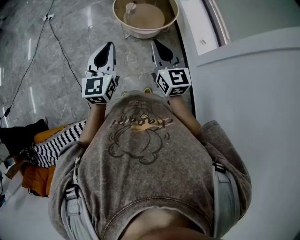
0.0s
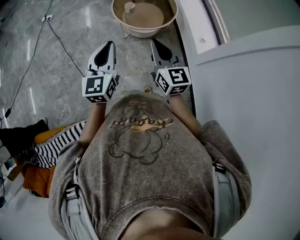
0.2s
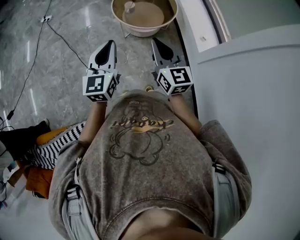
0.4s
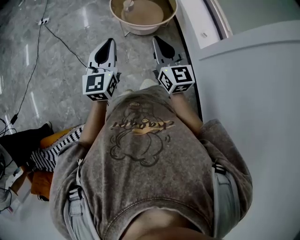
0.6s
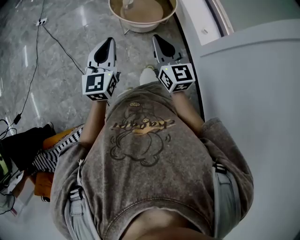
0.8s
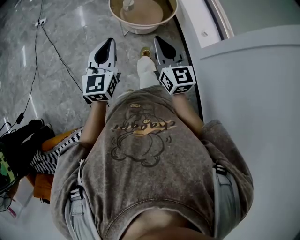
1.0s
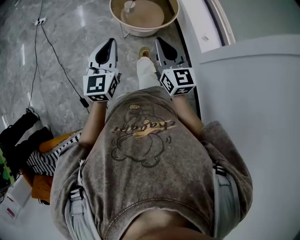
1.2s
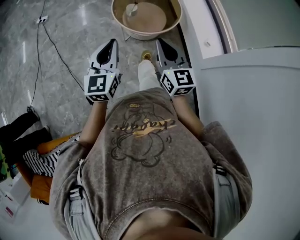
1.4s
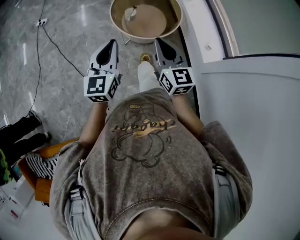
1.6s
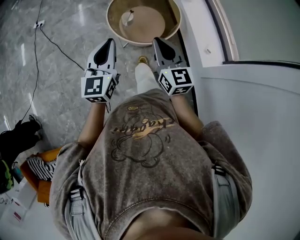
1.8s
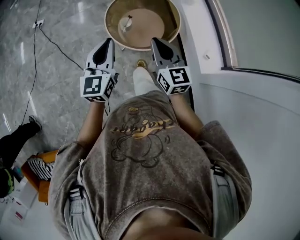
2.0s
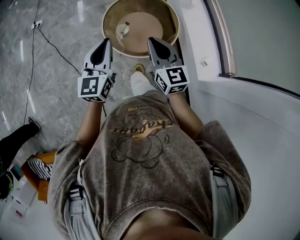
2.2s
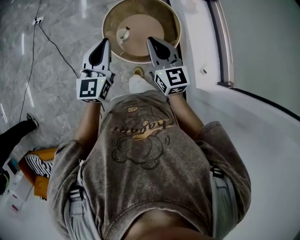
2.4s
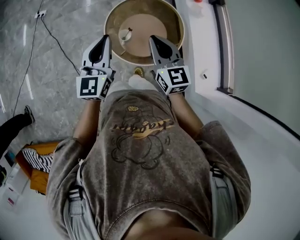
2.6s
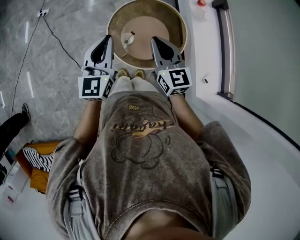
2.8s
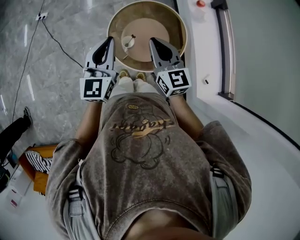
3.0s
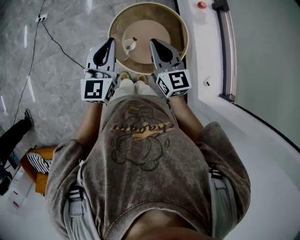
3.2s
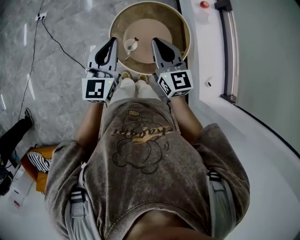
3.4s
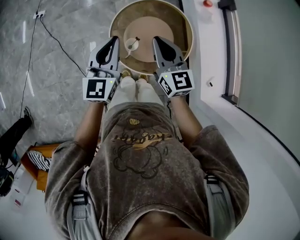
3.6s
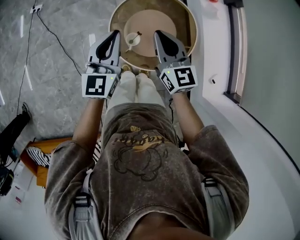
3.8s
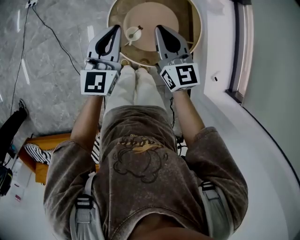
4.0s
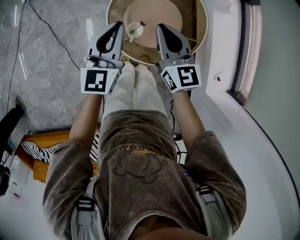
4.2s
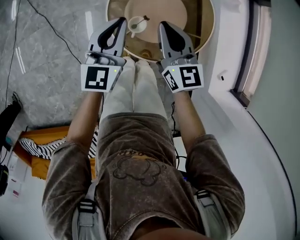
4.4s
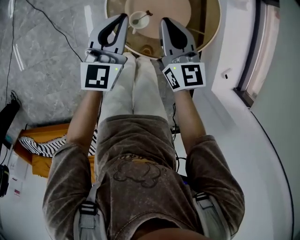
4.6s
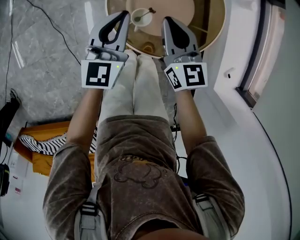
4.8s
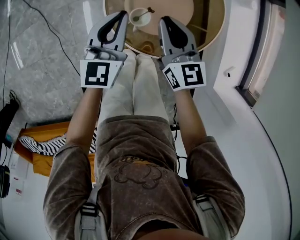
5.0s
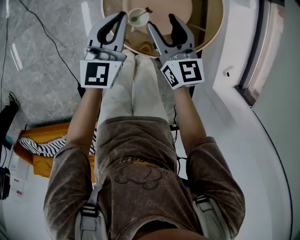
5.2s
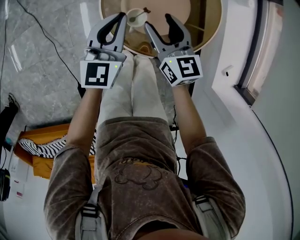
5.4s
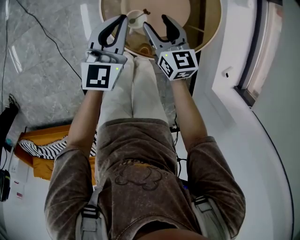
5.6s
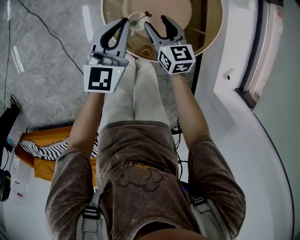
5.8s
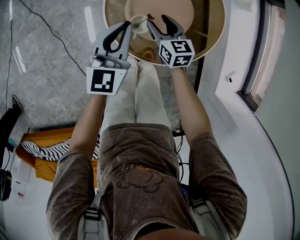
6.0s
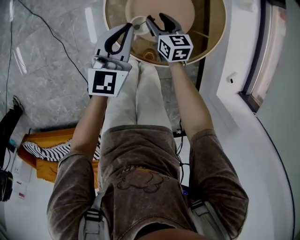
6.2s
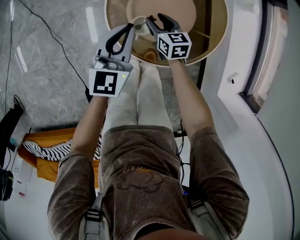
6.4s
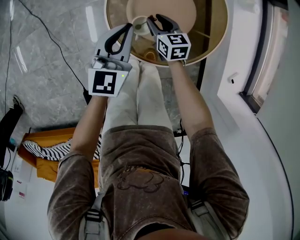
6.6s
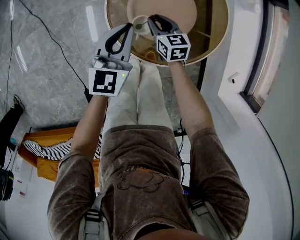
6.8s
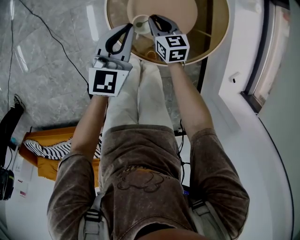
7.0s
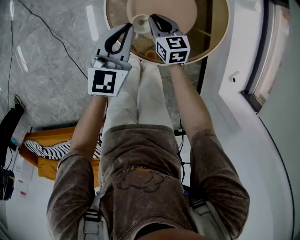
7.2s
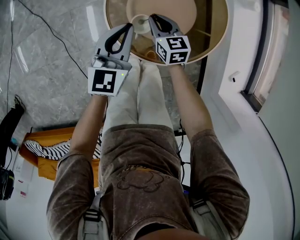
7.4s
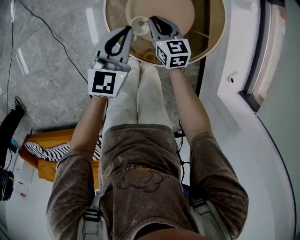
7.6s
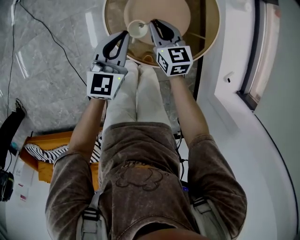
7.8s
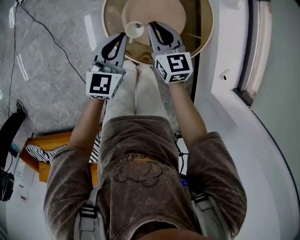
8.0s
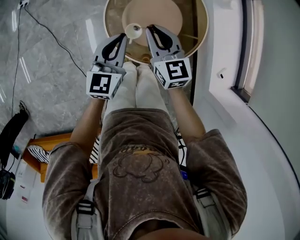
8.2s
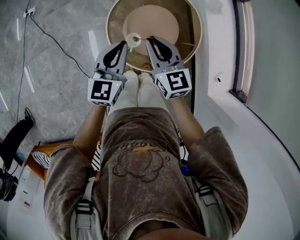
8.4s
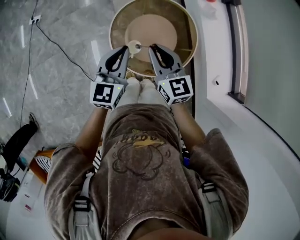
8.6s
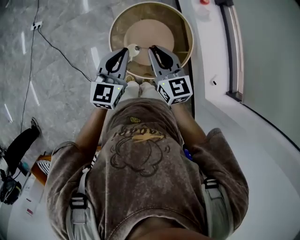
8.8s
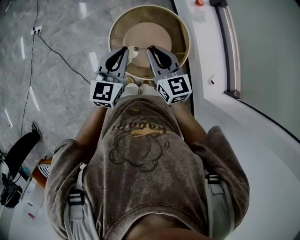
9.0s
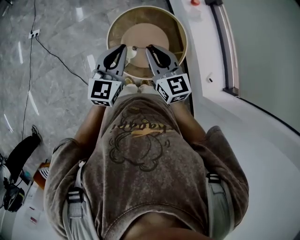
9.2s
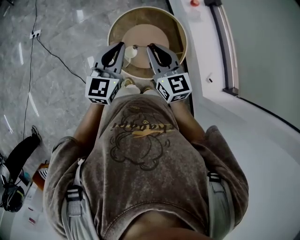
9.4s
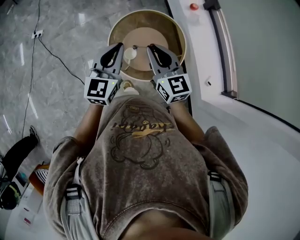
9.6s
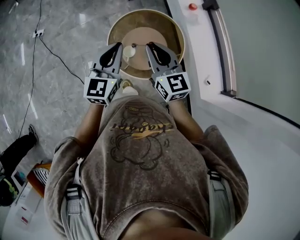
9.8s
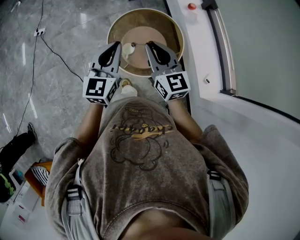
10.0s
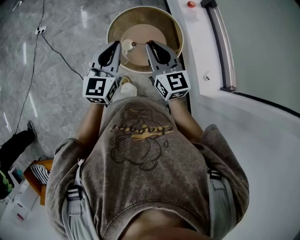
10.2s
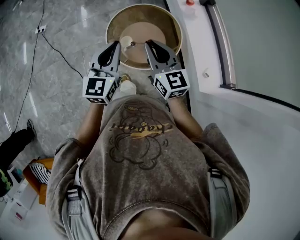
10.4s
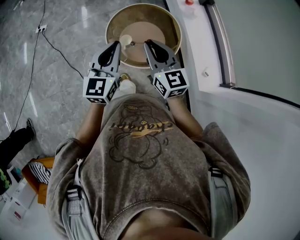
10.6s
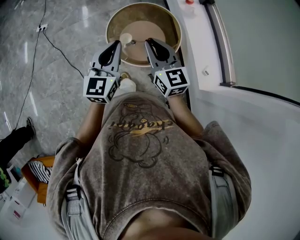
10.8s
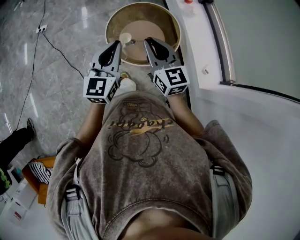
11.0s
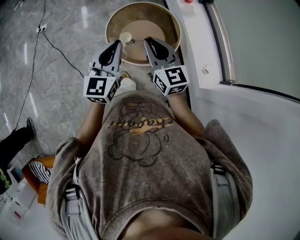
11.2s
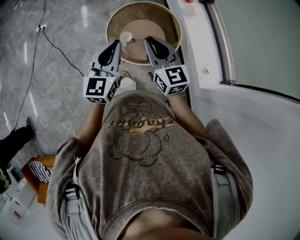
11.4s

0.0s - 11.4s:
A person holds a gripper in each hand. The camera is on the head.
0.0s - 1.4s: The two grippers go approximately 10 cm forward.
1.4s - 2.8s: Both grippers travel together forward, some 40 cm.
2.8s - 4.2s: Both grippers move downward and forward, about 20 cm.
4.2s - 5.6s: The grippers both shift downward by roughly 15 cm. The right gripper opens.
5.6s - 7.2s: The right gripper travels downward by some 10 cm, and closes up.
7.2s - 8.6s: The right gripper is displaced upward by about 35 cm, and rotates approximately 20 degrees; the left gripper is displaced upward by some 20 cm.
8.6s - 10.0s: The grippers both shift upward and backward by approximately 15 cm.
10.0s - 11.4s: The grippers both shift backward by some 10 cm.

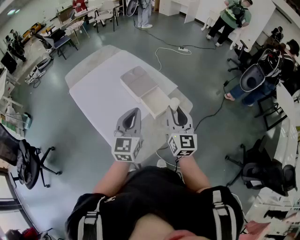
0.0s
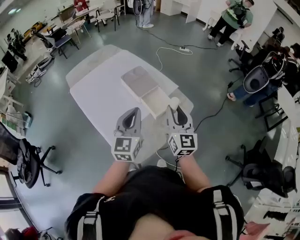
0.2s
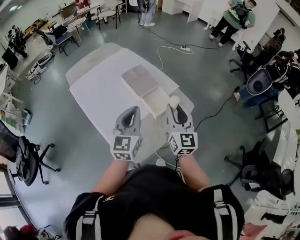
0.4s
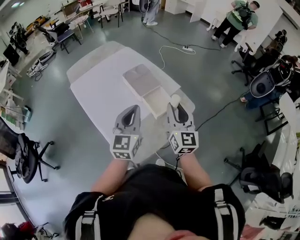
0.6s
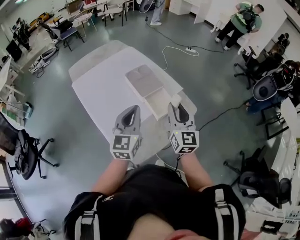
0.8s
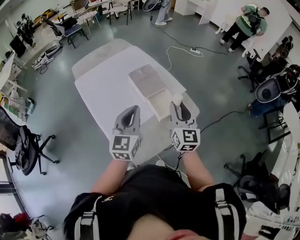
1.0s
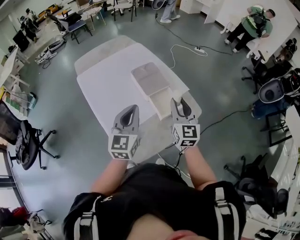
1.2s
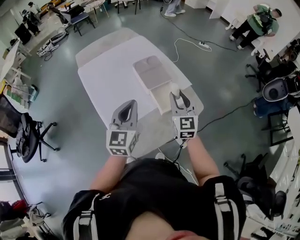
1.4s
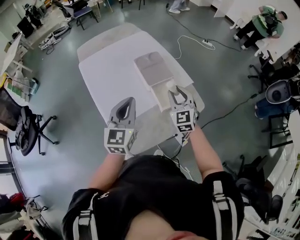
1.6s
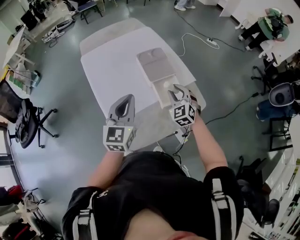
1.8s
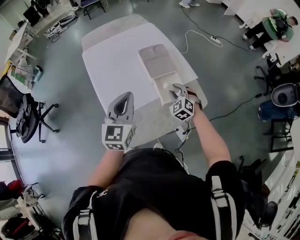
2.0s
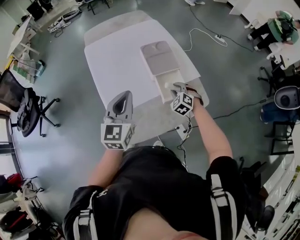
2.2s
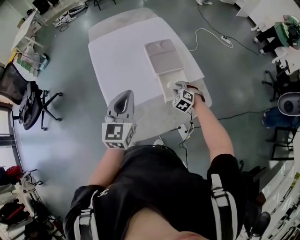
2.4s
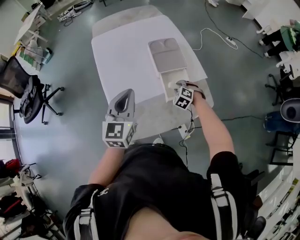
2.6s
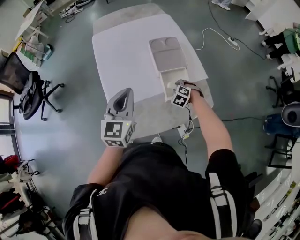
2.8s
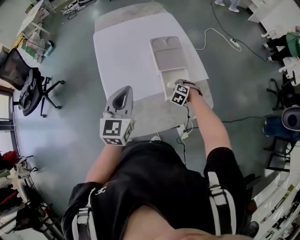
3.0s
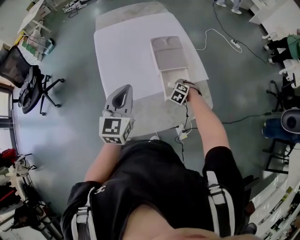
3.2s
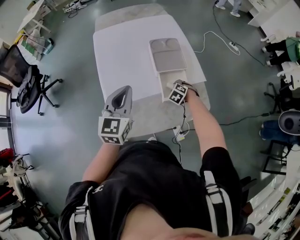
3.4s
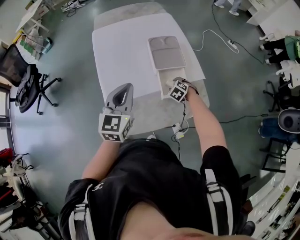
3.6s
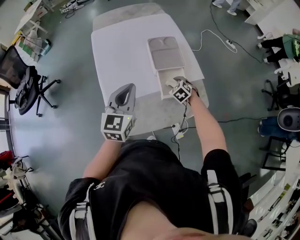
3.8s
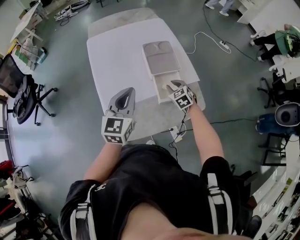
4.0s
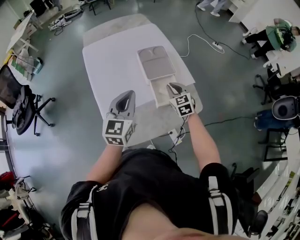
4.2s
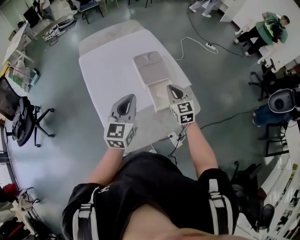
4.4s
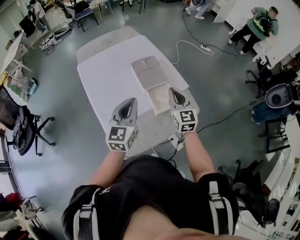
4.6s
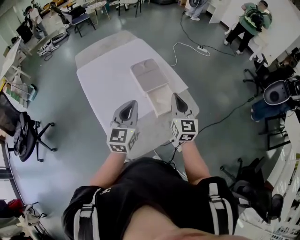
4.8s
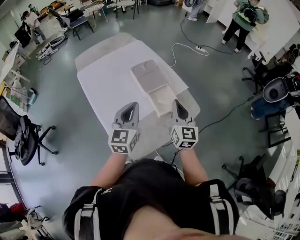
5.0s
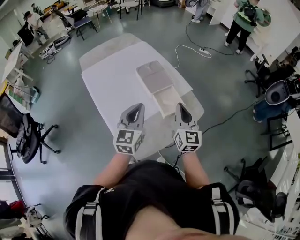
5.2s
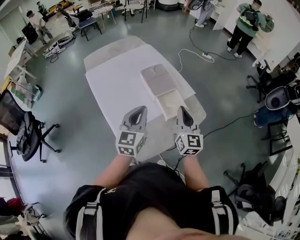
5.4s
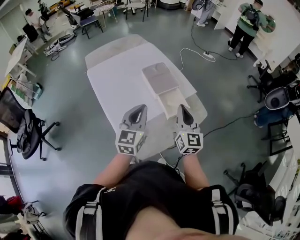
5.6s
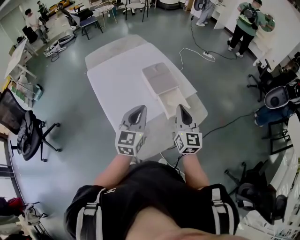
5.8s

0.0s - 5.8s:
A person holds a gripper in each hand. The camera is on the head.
0.0s - 1.4s: The right gripper travels forward by roughly 10 cm, and rotates about 20 degrees. The left gripper changes place by about 5 cm.
1.4s - 2.8s: The right gripper moves downward, about 30 cm, and tilts its fingers some 60 degrees downward.
2.8s - 4.4s: The right gripper shifts approximately 20 cm upward, angles its fingers upward, by approximately 40 degrees, and closes its fingers.
4.4s - 5.8s: The right gripper shifts some 15 cm backward and upward, and changes its angle by about 30 degrees.

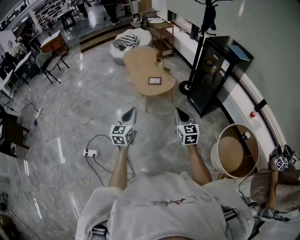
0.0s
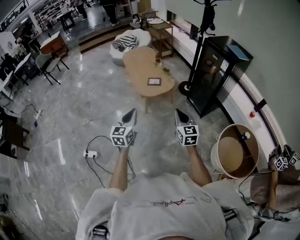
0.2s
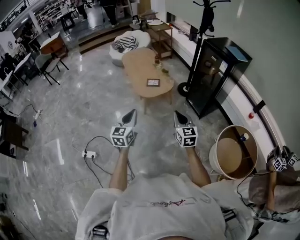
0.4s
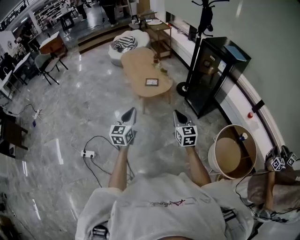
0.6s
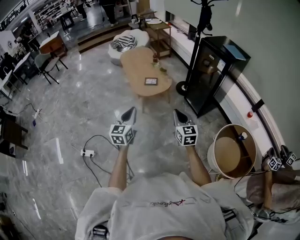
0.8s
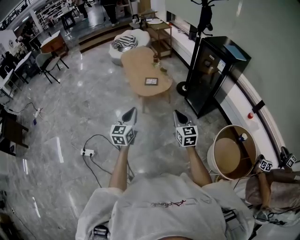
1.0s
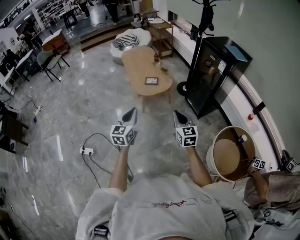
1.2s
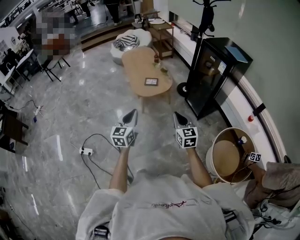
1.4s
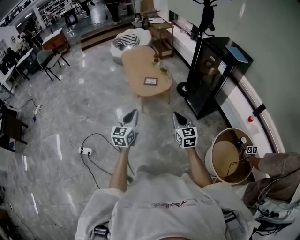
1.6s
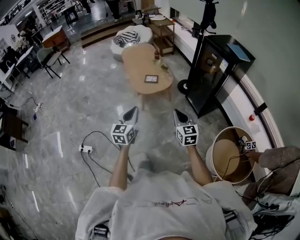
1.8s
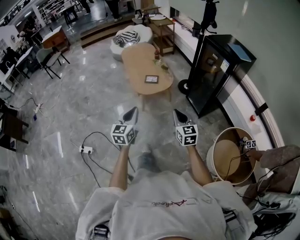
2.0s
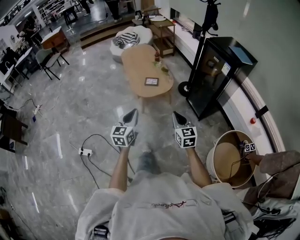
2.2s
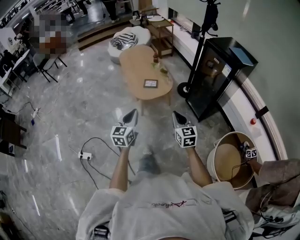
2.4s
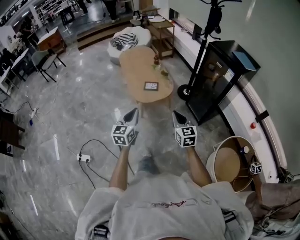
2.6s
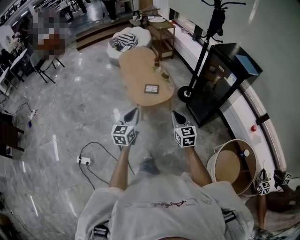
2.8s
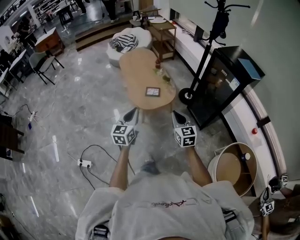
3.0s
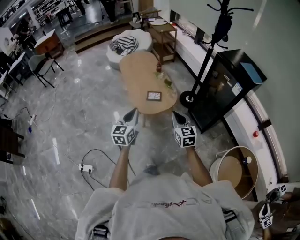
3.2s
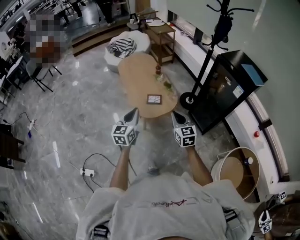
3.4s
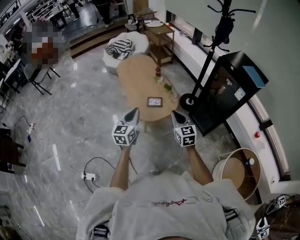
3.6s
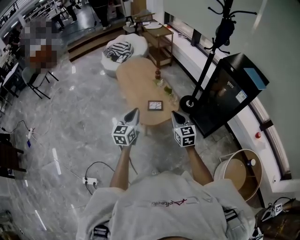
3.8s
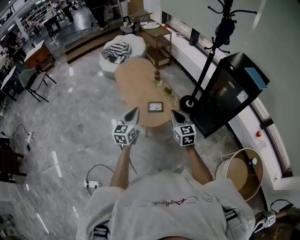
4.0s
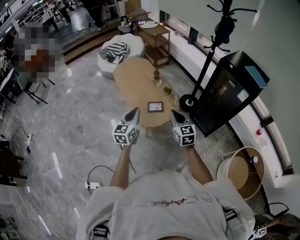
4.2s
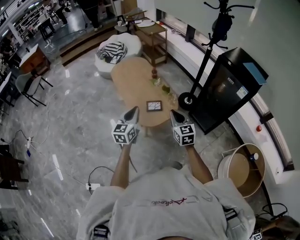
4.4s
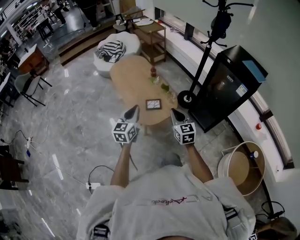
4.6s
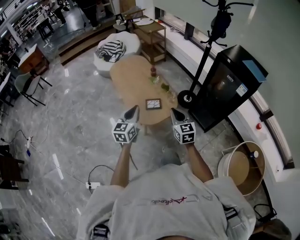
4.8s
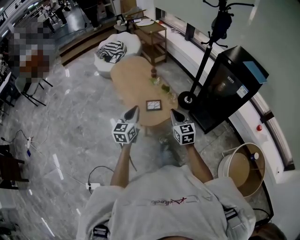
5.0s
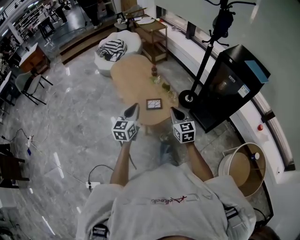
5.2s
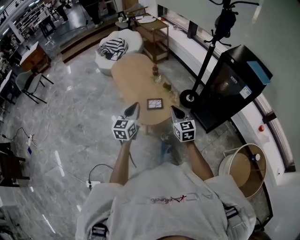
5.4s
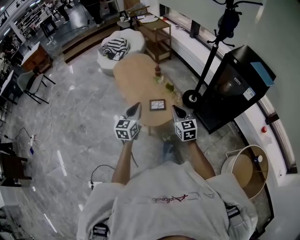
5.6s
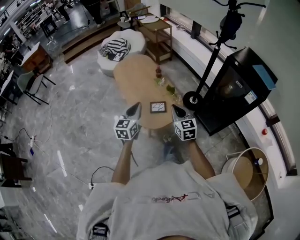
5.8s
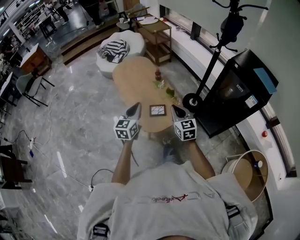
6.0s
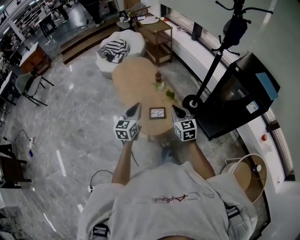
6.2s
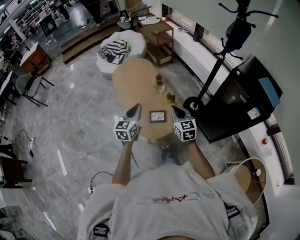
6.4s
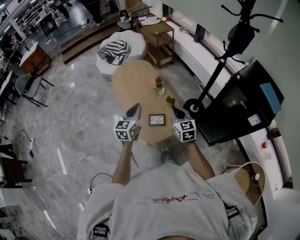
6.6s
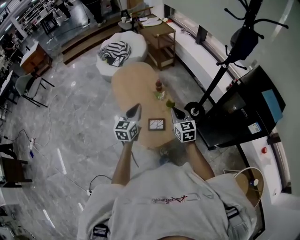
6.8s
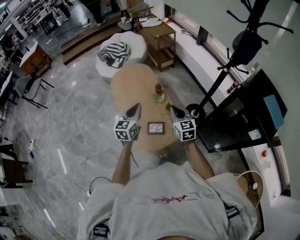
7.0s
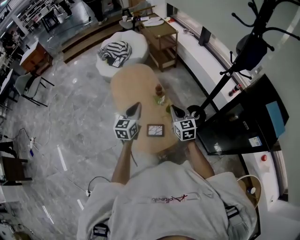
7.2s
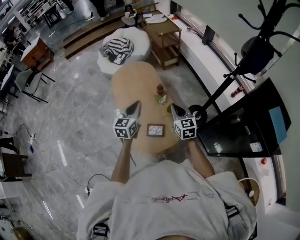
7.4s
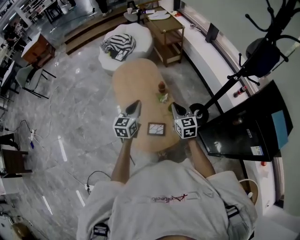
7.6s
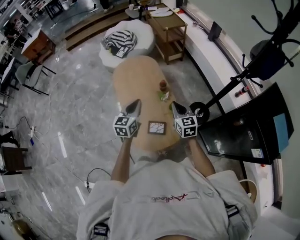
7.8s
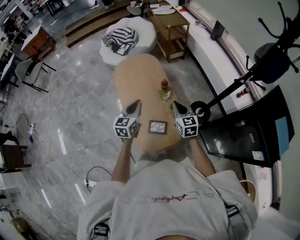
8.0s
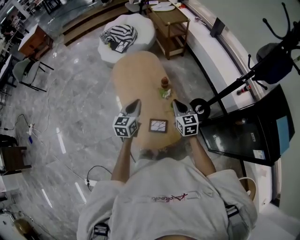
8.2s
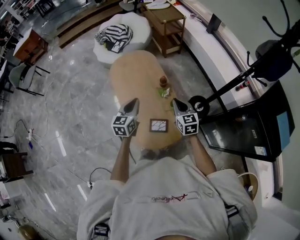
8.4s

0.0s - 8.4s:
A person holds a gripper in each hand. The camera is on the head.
0.0s - 1.4s: Both grippers travel together to the right, some 5 cm.
1.4s - 2.8s: Both grippers move forward, roughly 20 cm.
2.8s - 4.2s: The right gripper is displaced forward and to the left by roughly 25 cm. The left gripper is displaced forward by some 25 cm.
4.2s - 5.6s: The grippers both shift forward by roughly 5 cm.
5.6s - 7.0s: The grippers both shift forward by roughly 30 cm.
7.0s - 8.4s: The two grippers go roughly 15 cm forward and downward.
